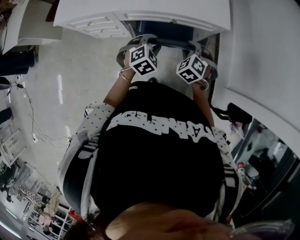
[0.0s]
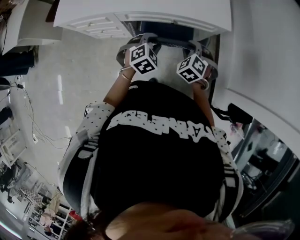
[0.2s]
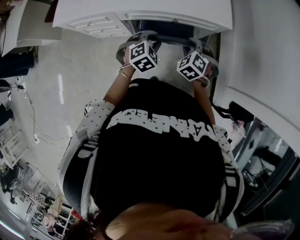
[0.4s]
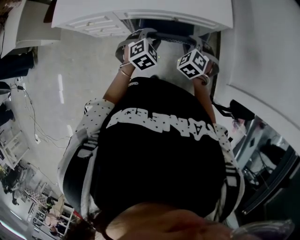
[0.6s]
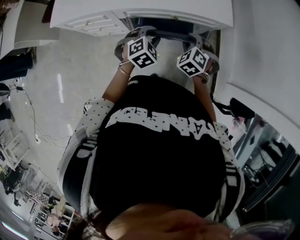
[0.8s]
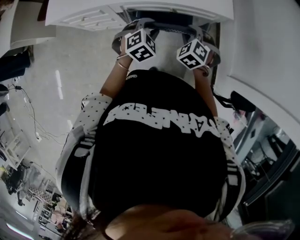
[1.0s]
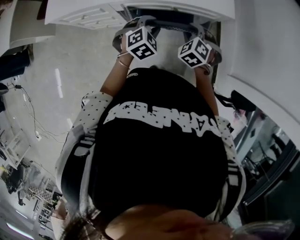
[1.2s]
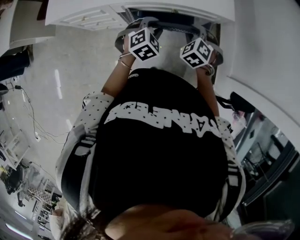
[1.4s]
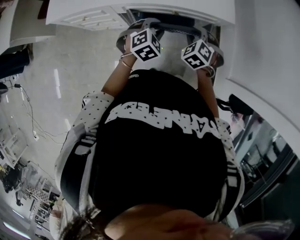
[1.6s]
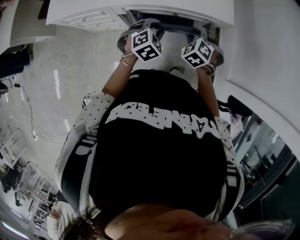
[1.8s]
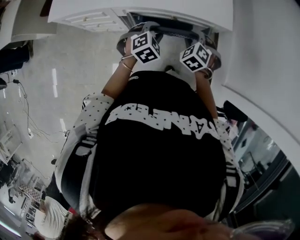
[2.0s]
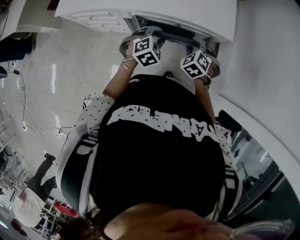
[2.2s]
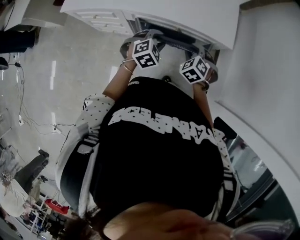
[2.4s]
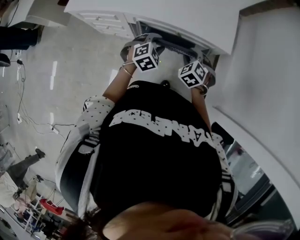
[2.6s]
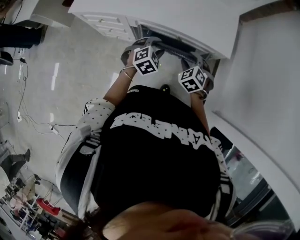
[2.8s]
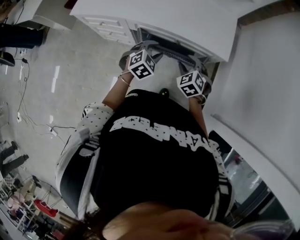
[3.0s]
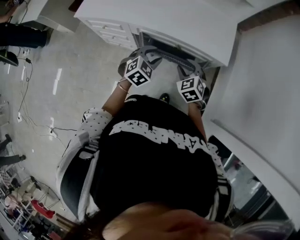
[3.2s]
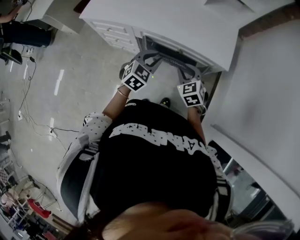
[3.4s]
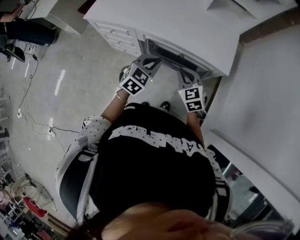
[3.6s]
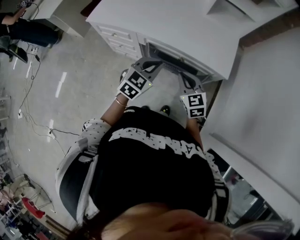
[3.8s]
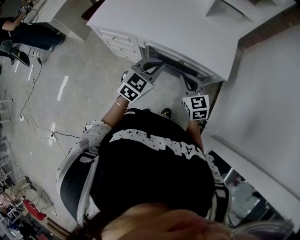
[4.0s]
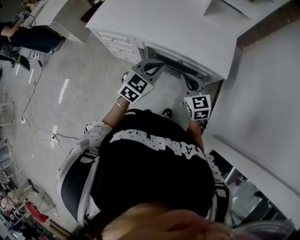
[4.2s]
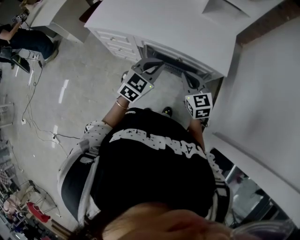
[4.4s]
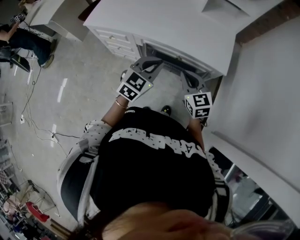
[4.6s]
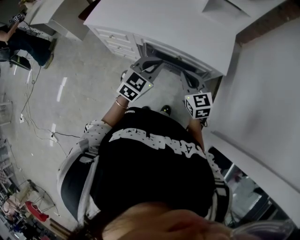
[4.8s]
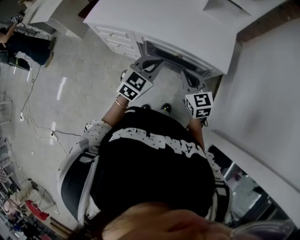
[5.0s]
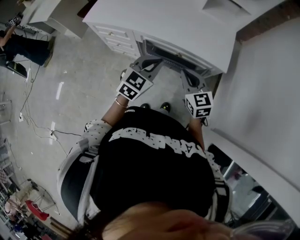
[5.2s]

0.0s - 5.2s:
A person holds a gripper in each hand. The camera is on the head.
0.0s - 1.8s: The left gripper shifts by roughly 5 cm, while the right gripper is displaced forward by roughly 5 cm.
1.8s - 3.4s: The left gripper travels upward by roughly 10 cm, and changes its angle by roughly 30 degrees. The right gripper ends up about 5 cm from where it was, and turns by some 30 degrees.
3.4s - 5.2s: The two grippers go approximately 10 cm upward. The right gripper turns by about 20 degrees, and closes up.

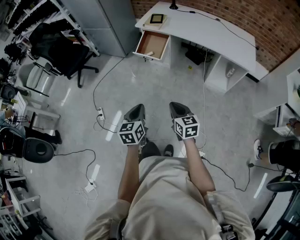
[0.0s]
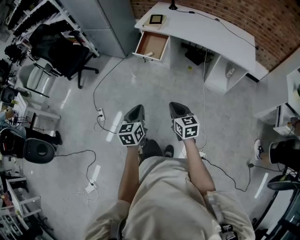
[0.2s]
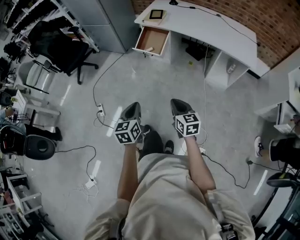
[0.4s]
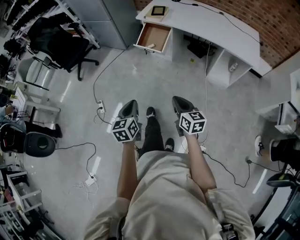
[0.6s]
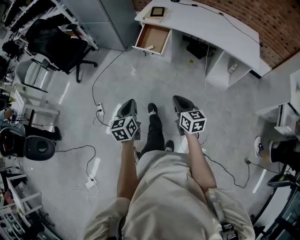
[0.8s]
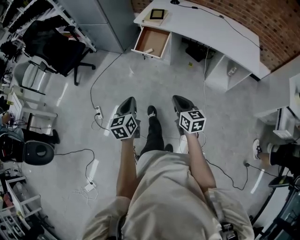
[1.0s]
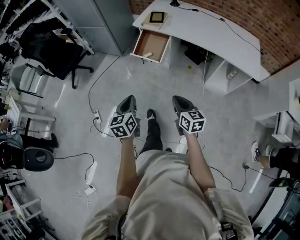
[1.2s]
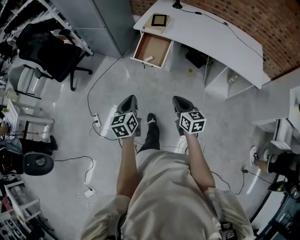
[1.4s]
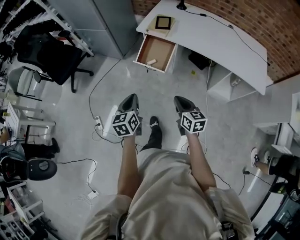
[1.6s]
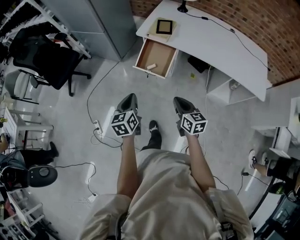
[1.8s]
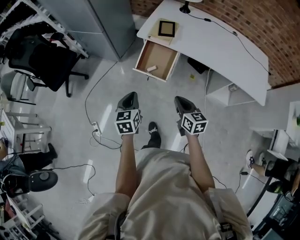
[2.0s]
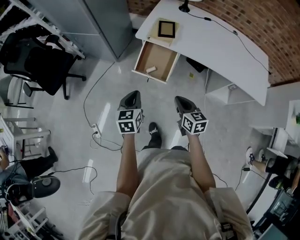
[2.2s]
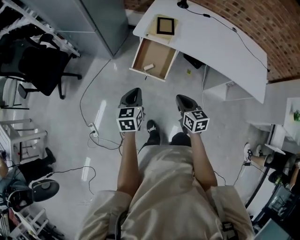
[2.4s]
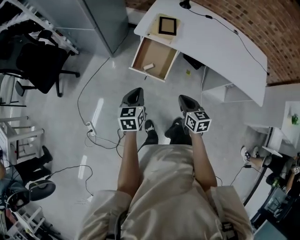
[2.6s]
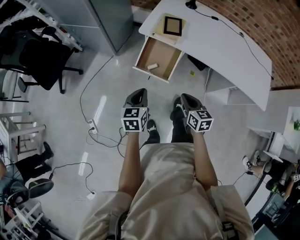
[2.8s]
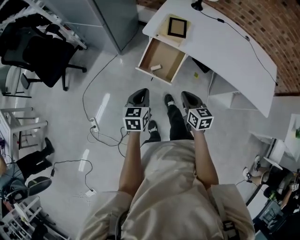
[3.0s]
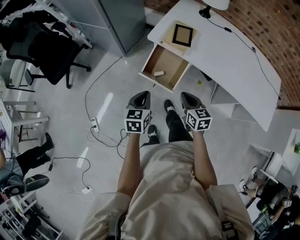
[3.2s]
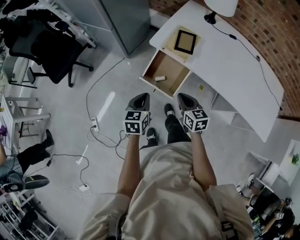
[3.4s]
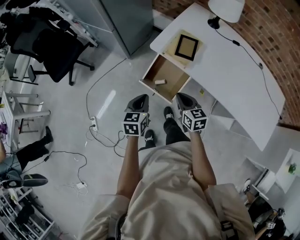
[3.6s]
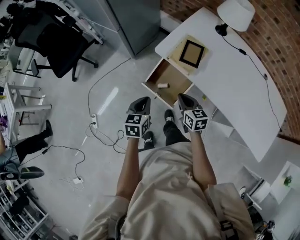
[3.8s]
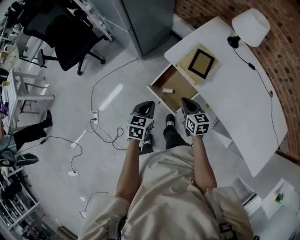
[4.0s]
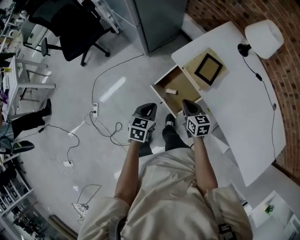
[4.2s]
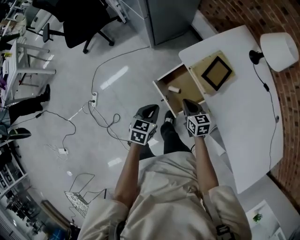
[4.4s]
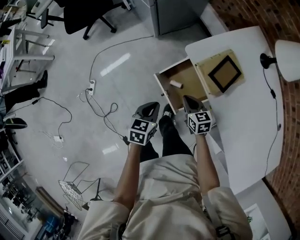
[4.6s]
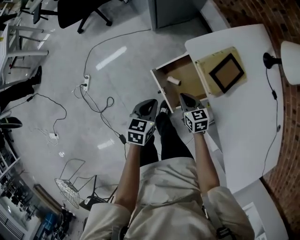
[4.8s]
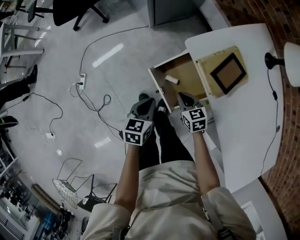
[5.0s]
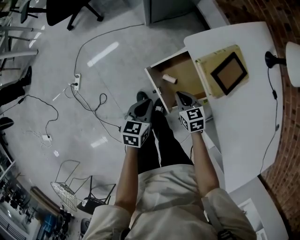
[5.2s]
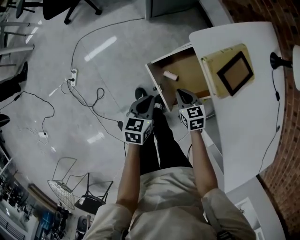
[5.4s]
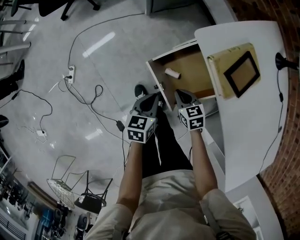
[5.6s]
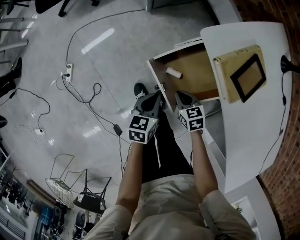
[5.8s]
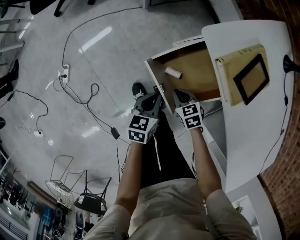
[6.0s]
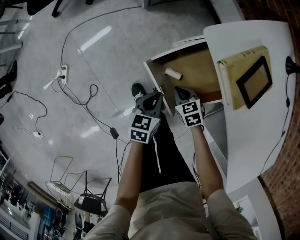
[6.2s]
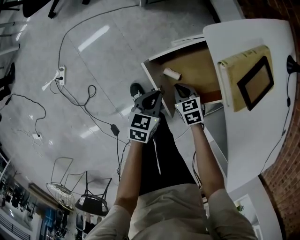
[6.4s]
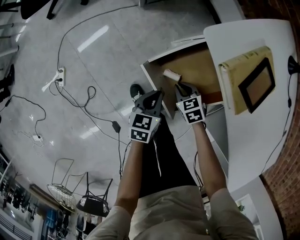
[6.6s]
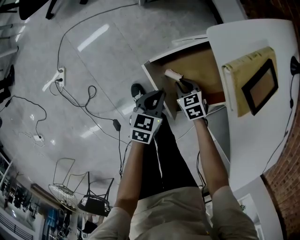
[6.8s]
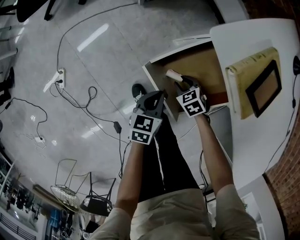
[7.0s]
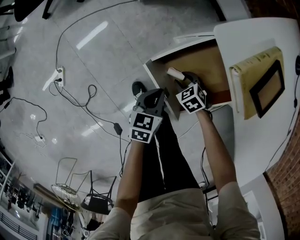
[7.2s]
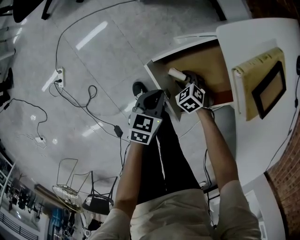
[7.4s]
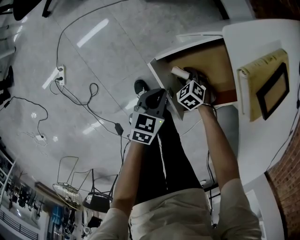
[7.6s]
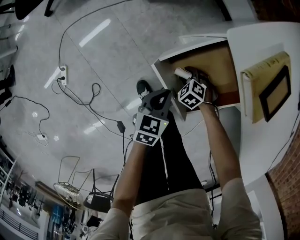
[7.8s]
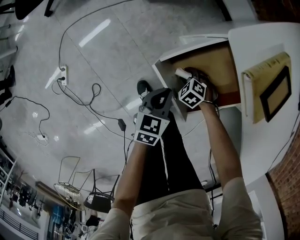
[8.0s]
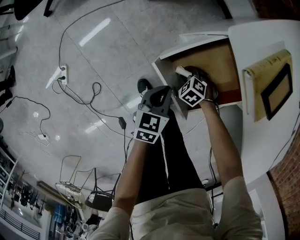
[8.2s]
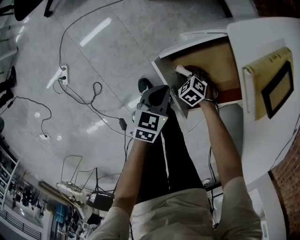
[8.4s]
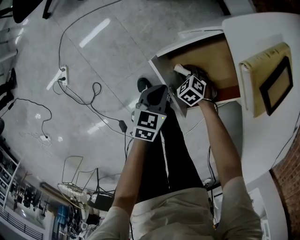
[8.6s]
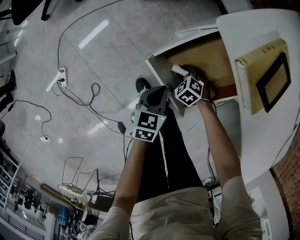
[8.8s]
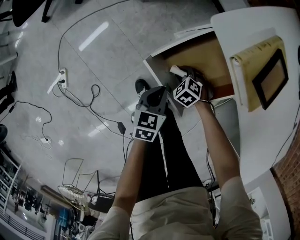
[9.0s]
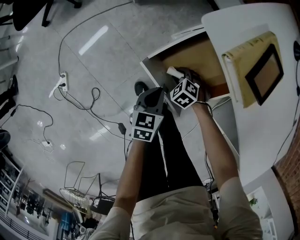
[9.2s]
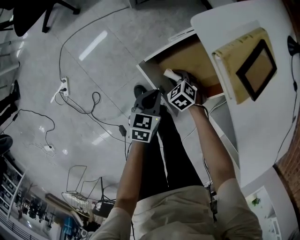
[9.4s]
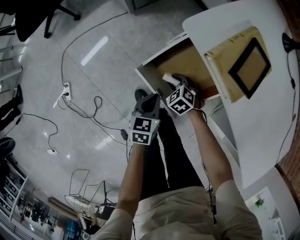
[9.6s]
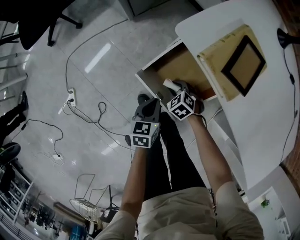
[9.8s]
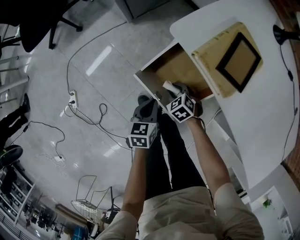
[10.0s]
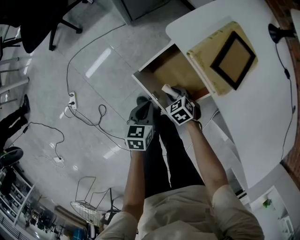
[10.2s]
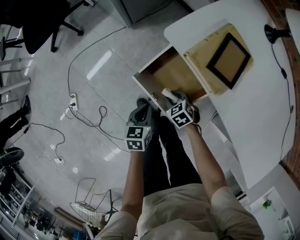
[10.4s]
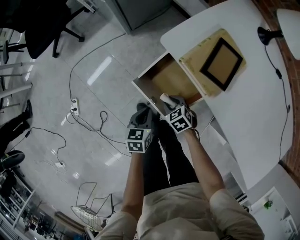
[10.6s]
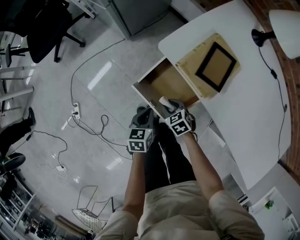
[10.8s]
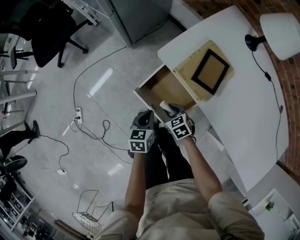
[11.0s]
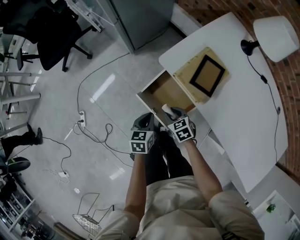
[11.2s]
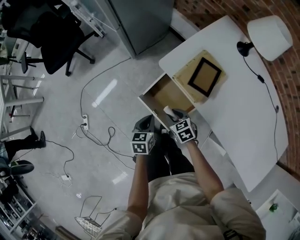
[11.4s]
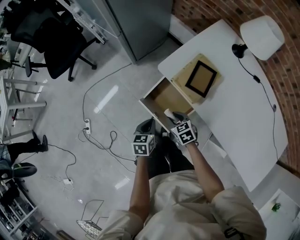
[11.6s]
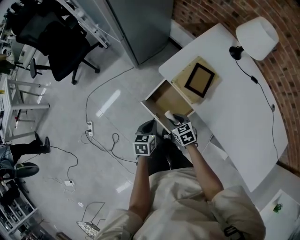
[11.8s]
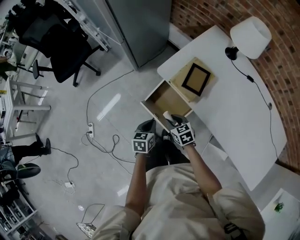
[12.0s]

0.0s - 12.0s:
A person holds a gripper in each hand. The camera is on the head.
0.0s - 1.6s: Both grippers travel together forward, roughly 30 cm.
1.6s - 3.0s: The grippers both shift forward by some 20 cm.
3.0s - 4.4s: The right gripper moves forward and downward, roughly 25 cm, and changes its angle by approximately 30 degrees; the left gripper shifts some 15 cm forward and downward.
4.4s - 6.0s: The grippers both shift downward by roughly 25 cm. The right gripper turns by some 30 degrees.
6.0s - 7.6s: The left gripper is displaced downward by approximately 5 cm. The right gripper goes about 10 cm downward, swivels about 30 degrees, and opens.
7.6s - 9.0s: The grippers make only small movements.
9.0s - 10.4s: The left gripper moves upward, some 5 cm. Meanwhile the right gripper goes approximately 10 cm upward, and swivels about 30 degrees.
10.4s - 12.0s: Both grippers travel together upward, some 20 cm. The right gripper rotates some 20 degrees.

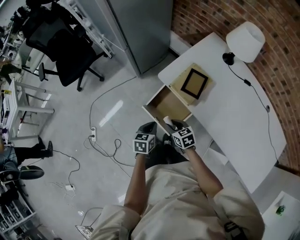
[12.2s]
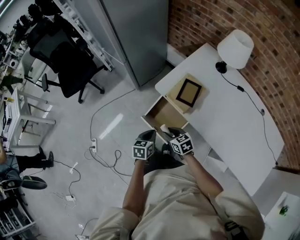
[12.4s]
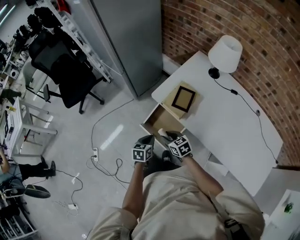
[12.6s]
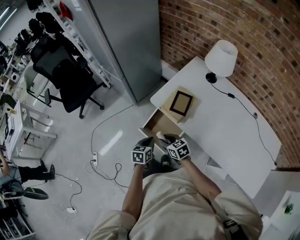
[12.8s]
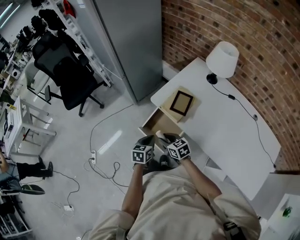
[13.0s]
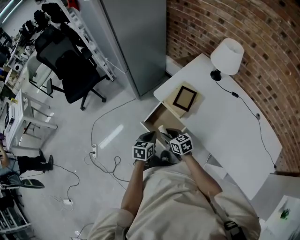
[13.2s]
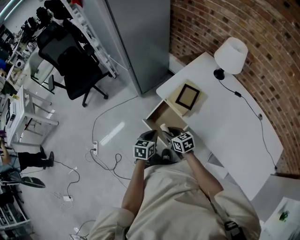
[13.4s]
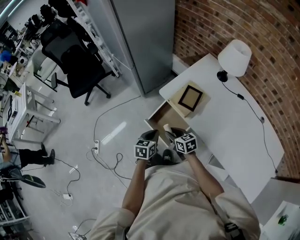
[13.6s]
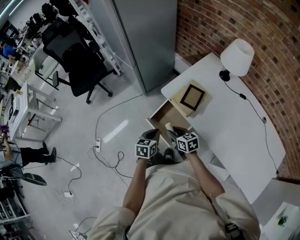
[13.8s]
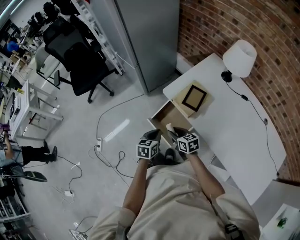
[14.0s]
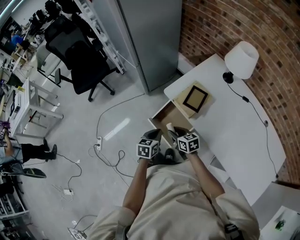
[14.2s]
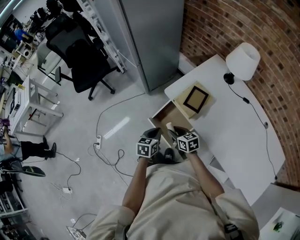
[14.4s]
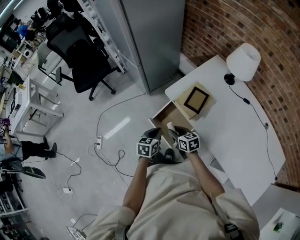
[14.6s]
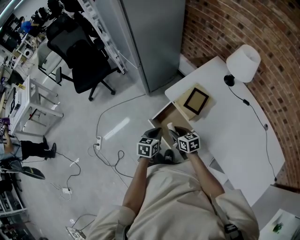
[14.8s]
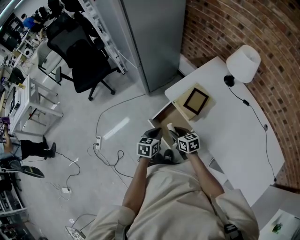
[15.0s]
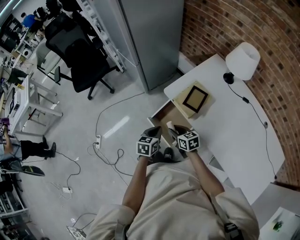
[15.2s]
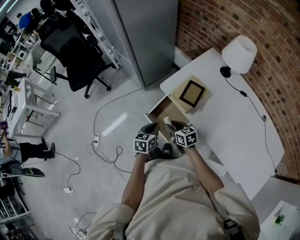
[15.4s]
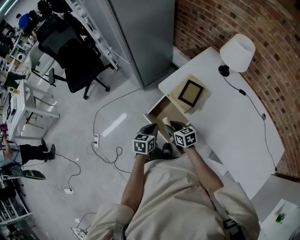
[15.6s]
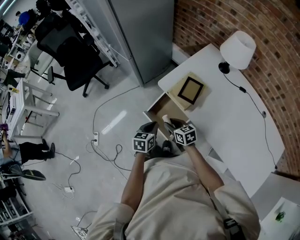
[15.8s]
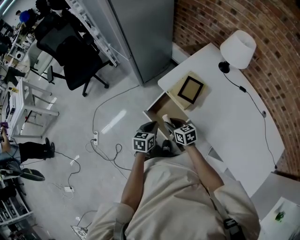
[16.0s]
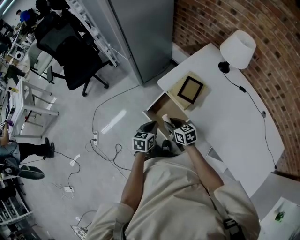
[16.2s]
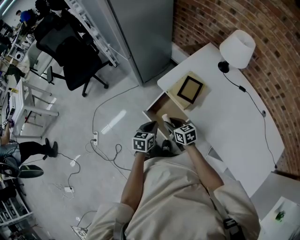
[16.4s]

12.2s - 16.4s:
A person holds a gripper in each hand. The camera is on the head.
12.2s - 13.6s: Both grippers travel together upward, some 5 cm.
13.6s - 16.4s: The grippers make only small movements.

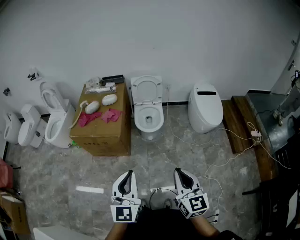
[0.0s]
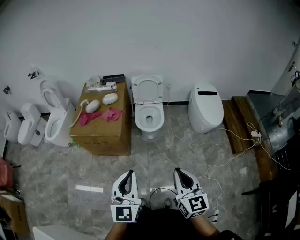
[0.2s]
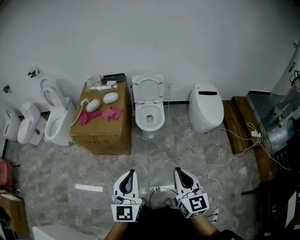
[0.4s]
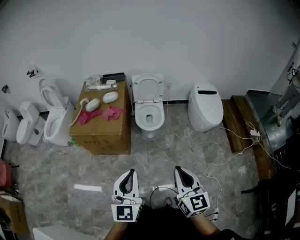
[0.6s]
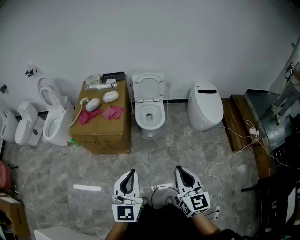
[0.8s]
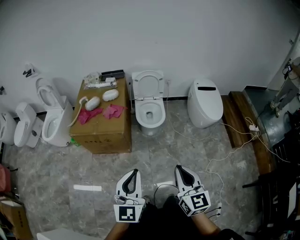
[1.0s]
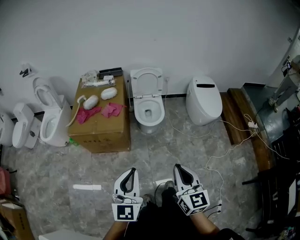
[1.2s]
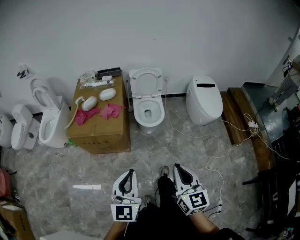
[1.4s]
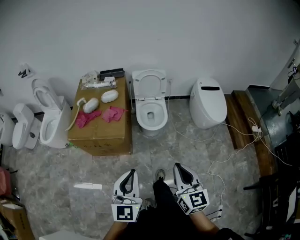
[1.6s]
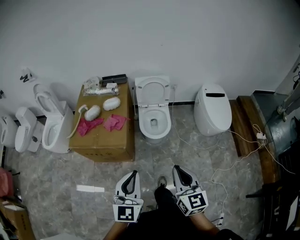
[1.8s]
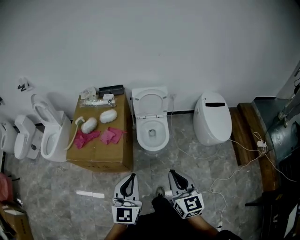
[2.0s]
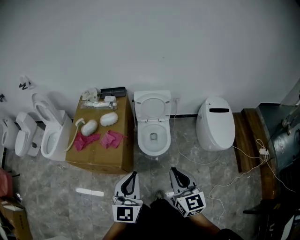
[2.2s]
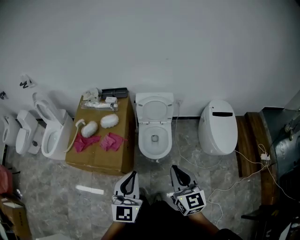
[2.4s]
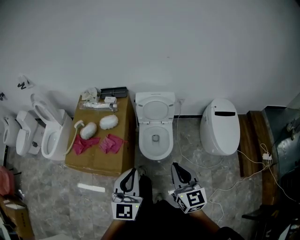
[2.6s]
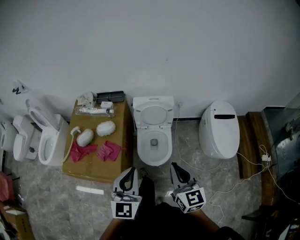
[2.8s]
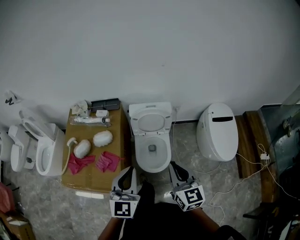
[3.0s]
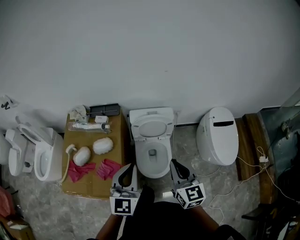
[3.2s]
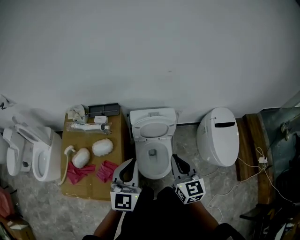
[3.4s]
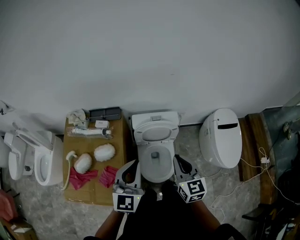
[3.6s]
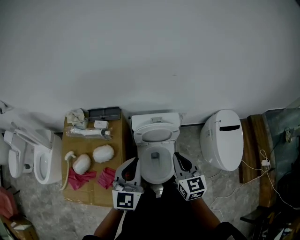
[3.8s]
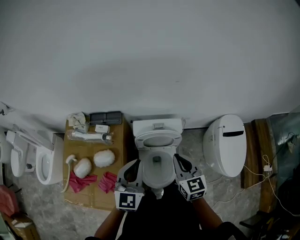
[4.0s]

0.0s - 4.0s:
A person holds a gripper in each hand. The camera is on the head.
0.0s - 1.4s: The two grippers go some 10 cm to the left.
1.4s - 2.6s: The two grippers go approximately 40 cm forward.
2.6s - 4.0s: Both grippers are carried forward, about 40 cm.
